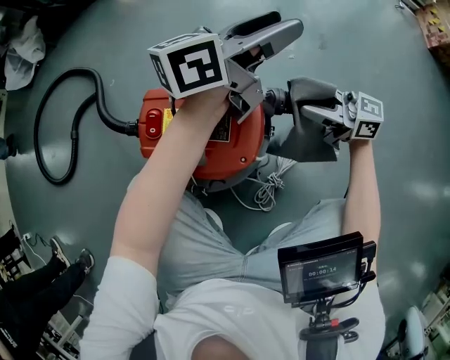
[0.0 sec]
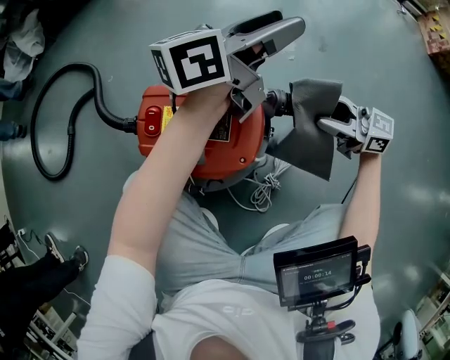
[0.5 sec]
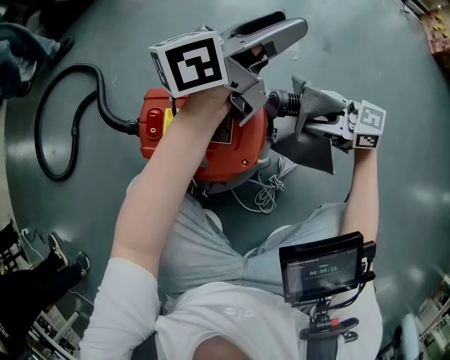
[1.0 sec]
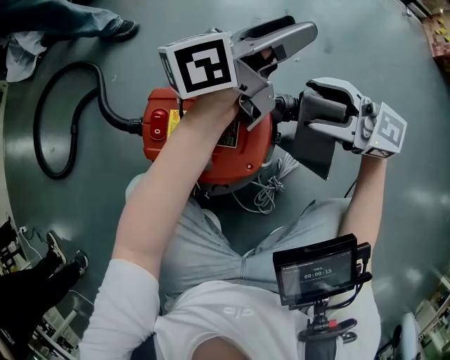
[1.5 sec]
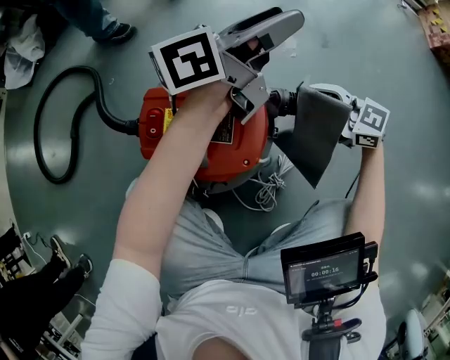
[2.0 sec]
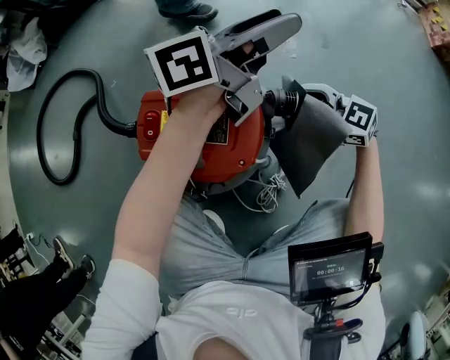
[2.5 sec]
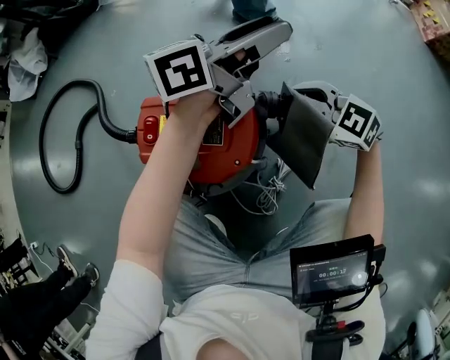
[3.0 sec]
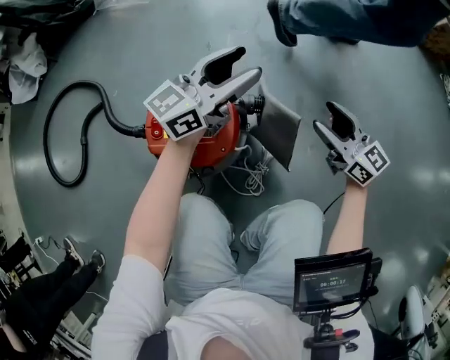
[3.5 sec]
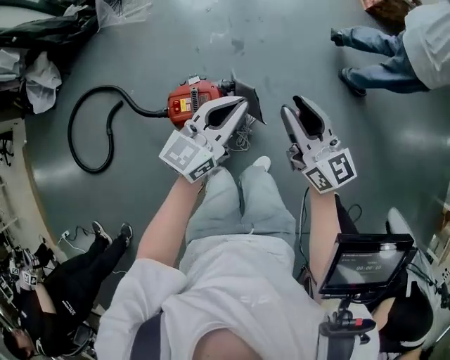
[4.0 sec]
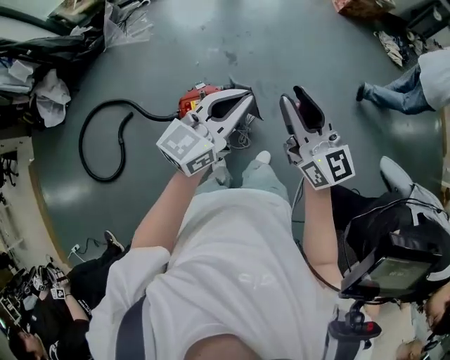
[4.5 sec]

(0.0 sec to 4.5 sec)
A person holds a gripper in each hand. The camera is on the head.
0.0 sec - 2.0 sec: The right gripper turns by roughly 20 degrees.
2.0 sec - 4.5 sec: The left gripper moves upward, roughly 25 cm, turns by roughly 40 degrees, and closes up, while the right gripper shifts some 50 cm upward, changes its angle by roughly 70 degrees, and closes up.

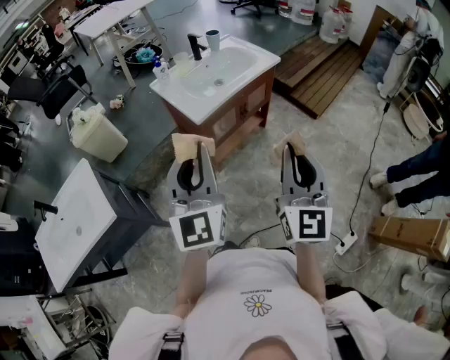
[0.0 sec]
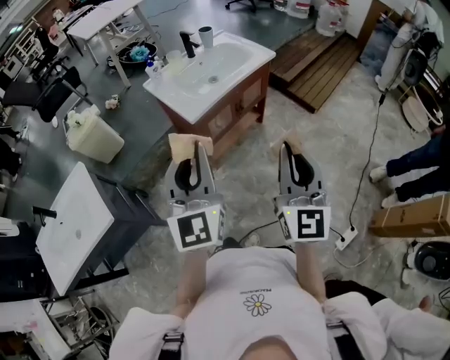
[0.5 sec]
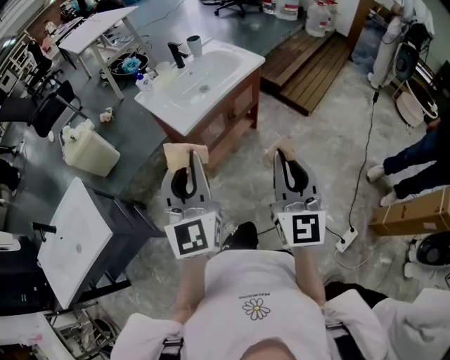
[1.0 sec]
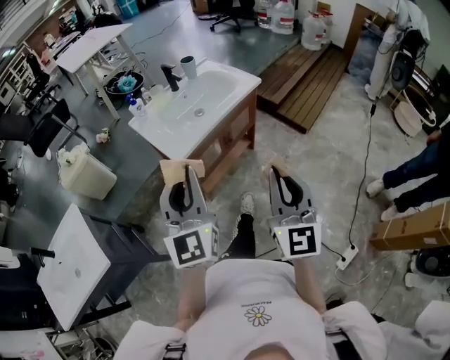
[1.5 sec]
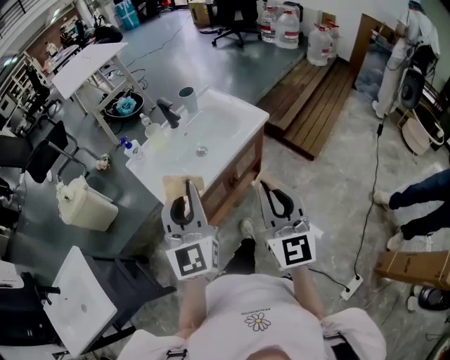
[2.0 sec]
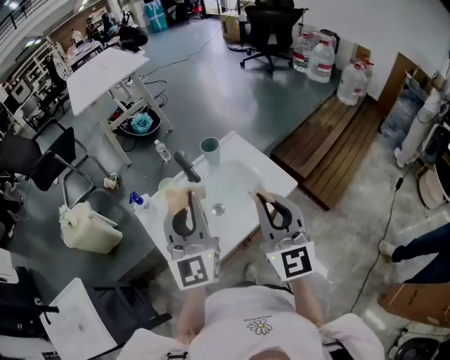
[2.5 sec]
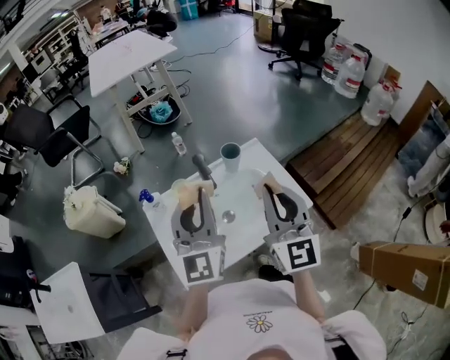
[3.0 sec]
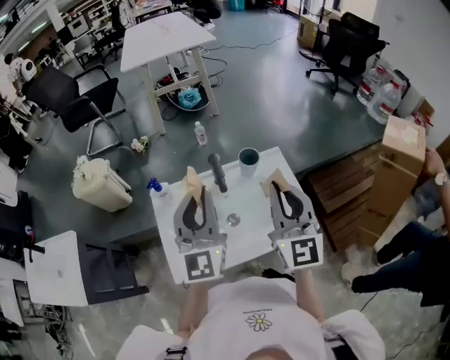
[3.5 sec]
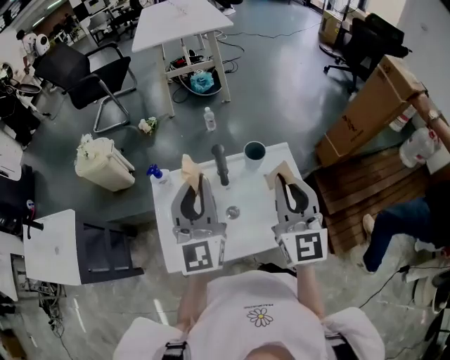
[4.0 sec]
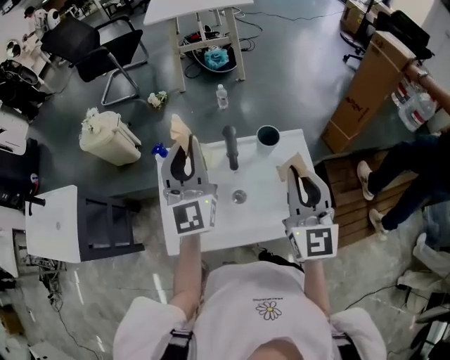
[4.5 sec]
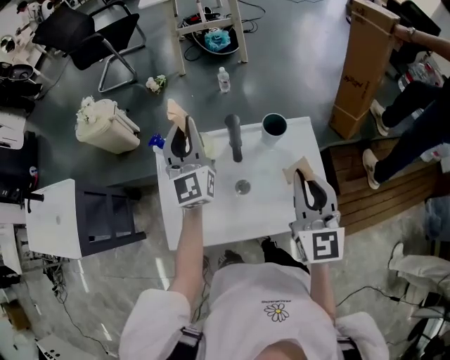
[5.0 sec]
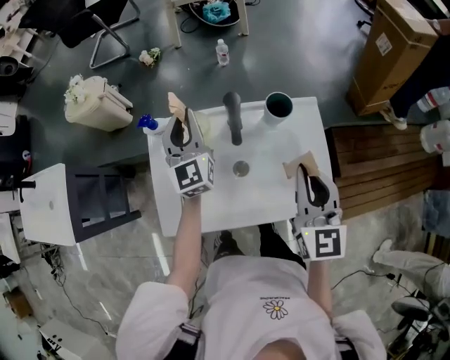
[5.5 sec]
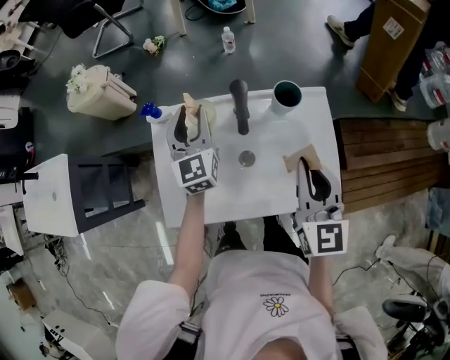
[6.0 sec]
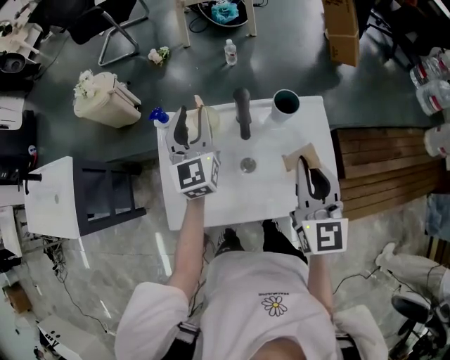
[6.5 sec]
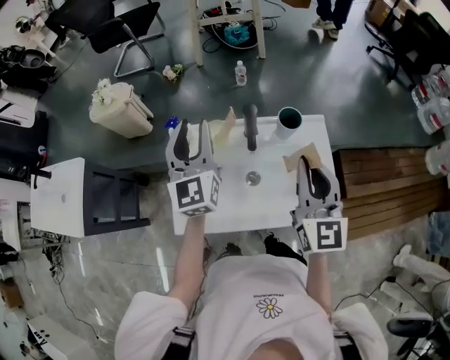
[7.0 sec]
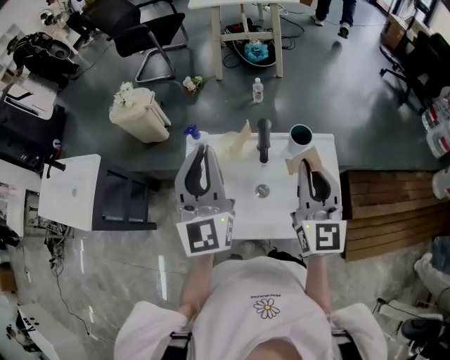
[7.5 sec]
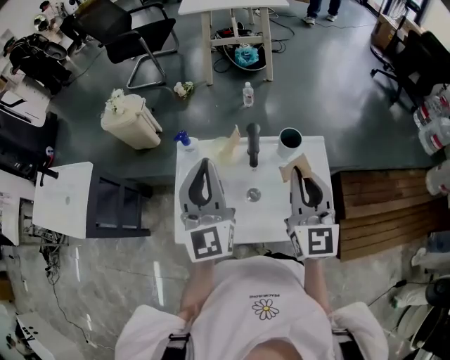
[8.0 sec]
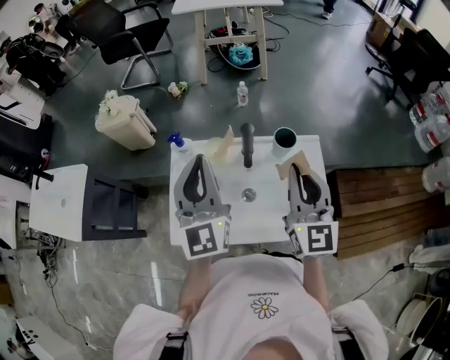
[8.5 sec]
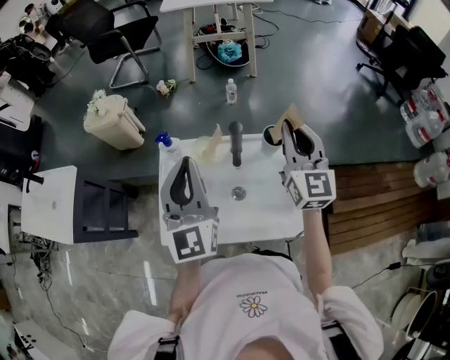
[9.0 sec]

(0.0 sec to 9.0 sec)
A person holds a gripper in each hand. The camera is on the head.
0.0 sec - 2.0 sec: The grippers both shift forward by about 30 cm.
2.0 sec - 4.5 sec: The left gripper ends up approximately 40 cm from where it was, and rotates about 40 degrees. The right gripper changes place by about 50 cm, and turns by about 30 degrees.
4.5 sec - 7.0 sec: The right gripper moves some 10 cm downward and comes back, while the left gripper moves some 20 cm downward and comes back, and opens up.
7.0 sec - 9.0 sec: The right gripper heads forward, covering about 10 cm. The left gripper is displaced backward by about 10 cm, and closes up.

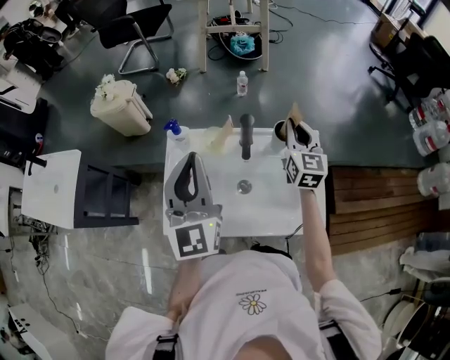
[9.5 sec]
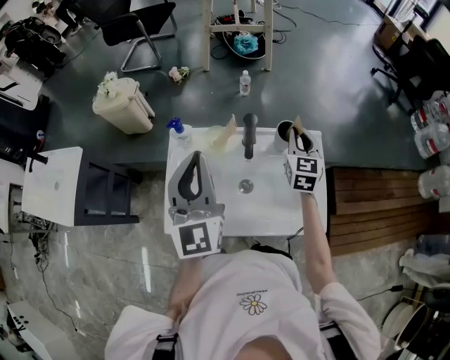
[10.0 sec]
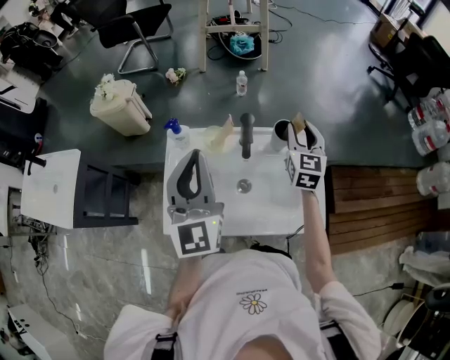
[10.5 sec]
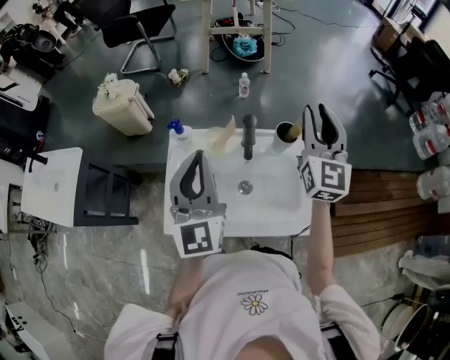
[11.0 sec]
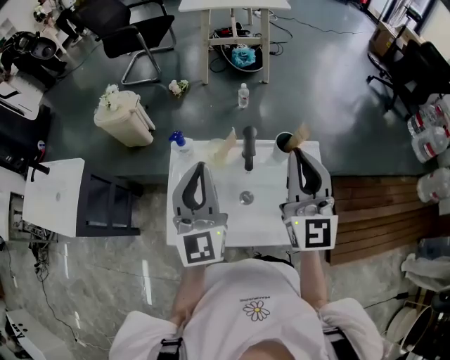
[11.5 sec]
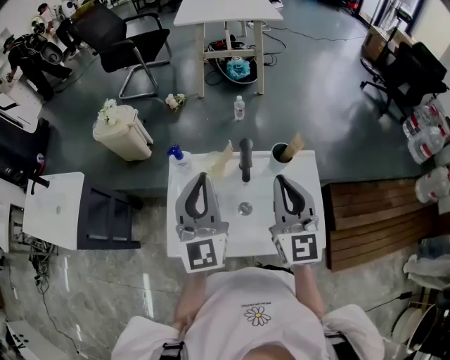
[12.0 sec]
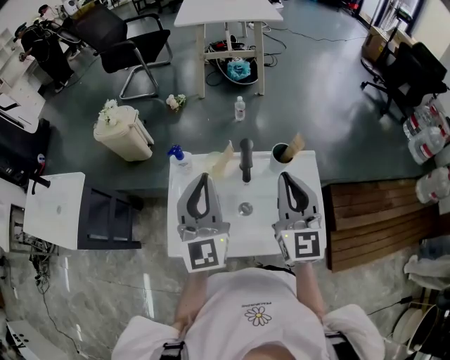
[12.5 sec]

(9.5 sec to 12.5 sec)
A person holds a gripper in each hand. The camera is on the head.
9.5 sec - 11.0 sec: The right gripper is displaced upward by approximately 15 cm, and opens up.
11.0 sec - 12.5 sec: The right gripper is displaced backward and to the left by about 10 cm, and closes its fingers.

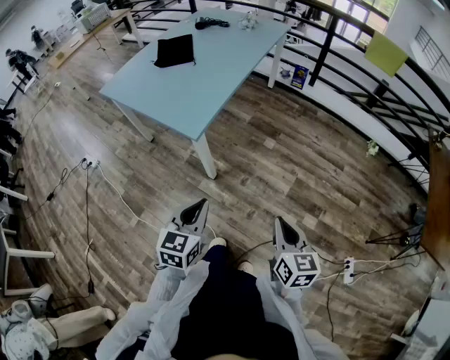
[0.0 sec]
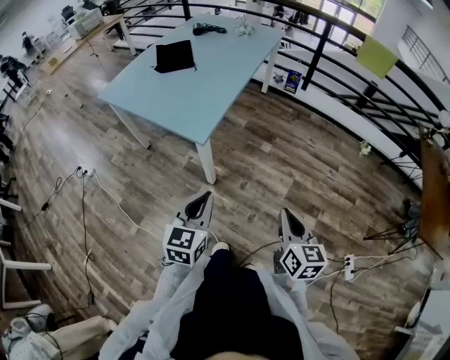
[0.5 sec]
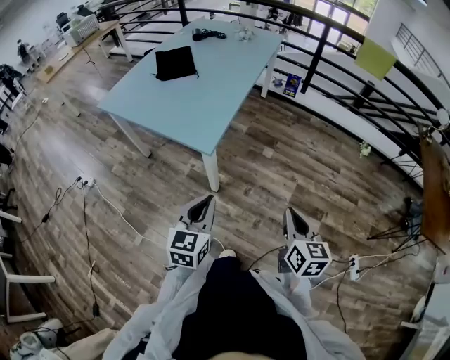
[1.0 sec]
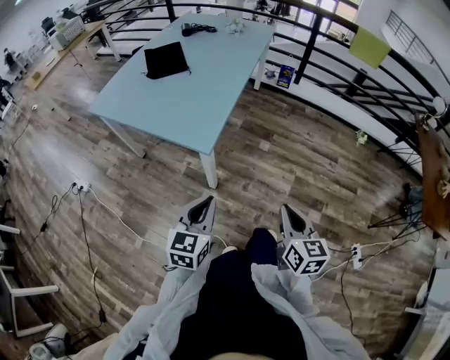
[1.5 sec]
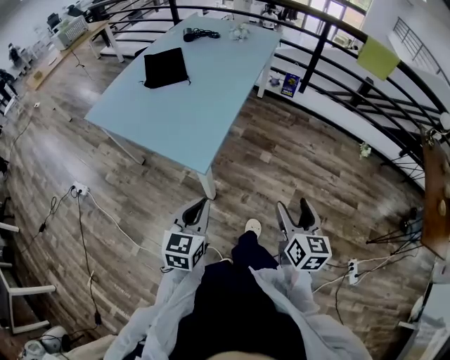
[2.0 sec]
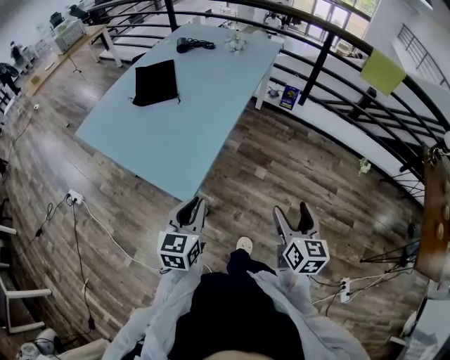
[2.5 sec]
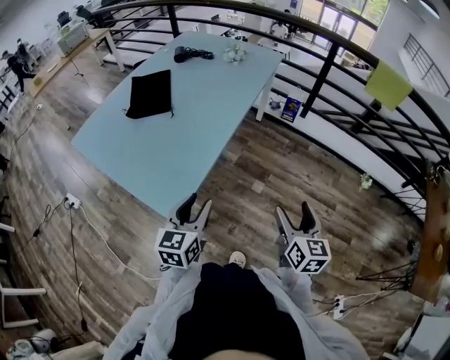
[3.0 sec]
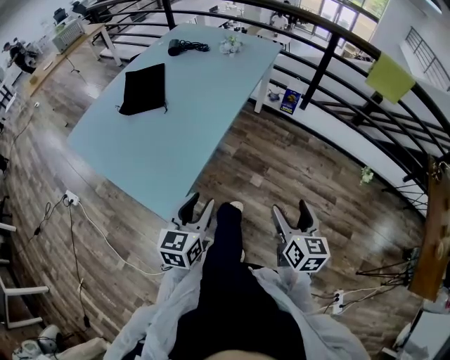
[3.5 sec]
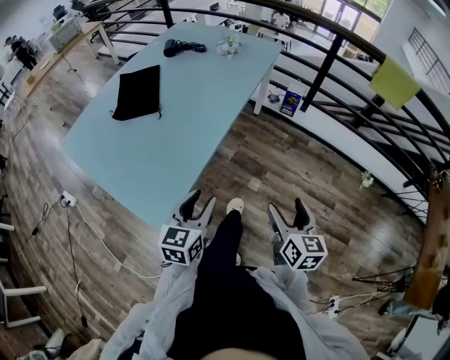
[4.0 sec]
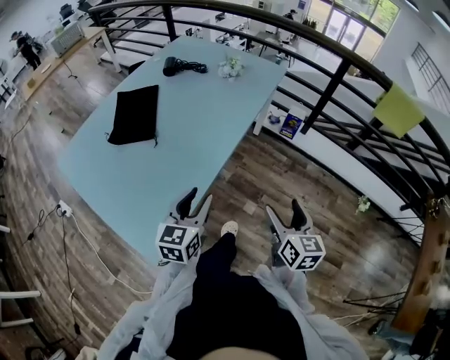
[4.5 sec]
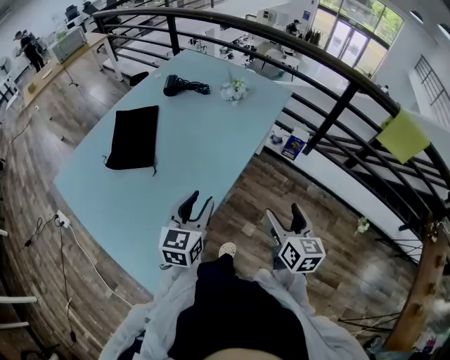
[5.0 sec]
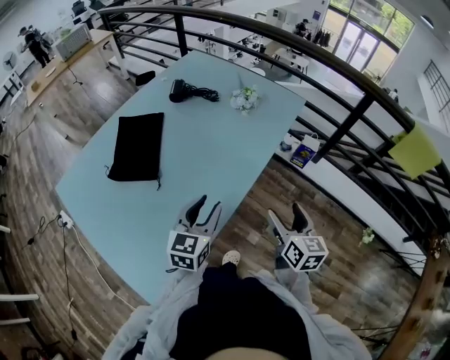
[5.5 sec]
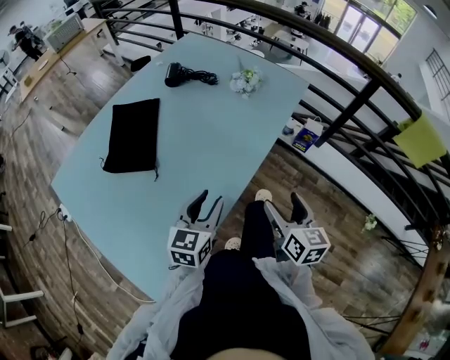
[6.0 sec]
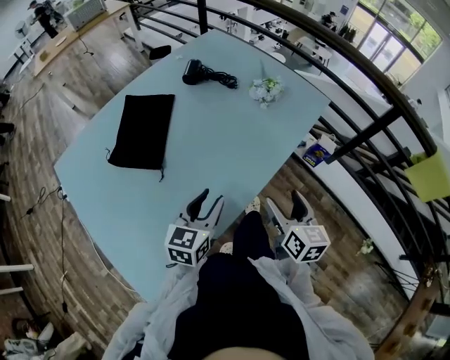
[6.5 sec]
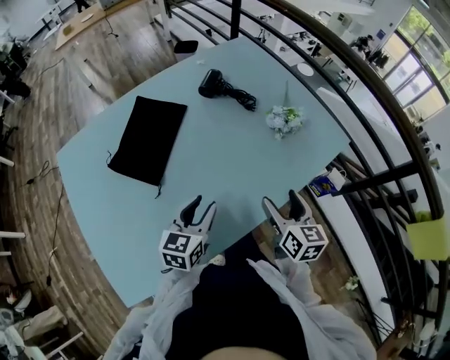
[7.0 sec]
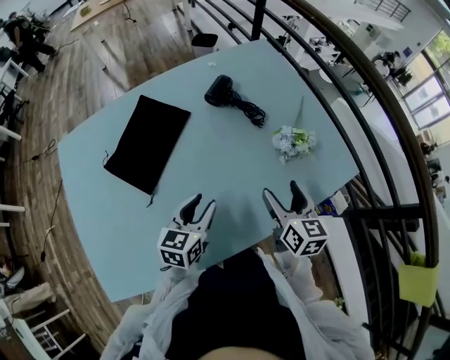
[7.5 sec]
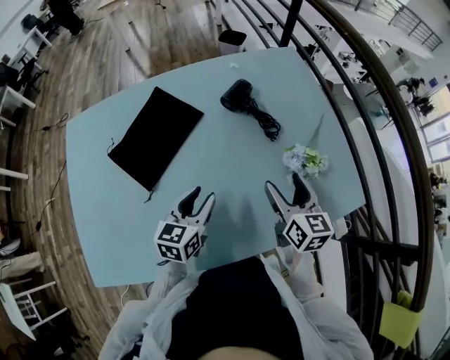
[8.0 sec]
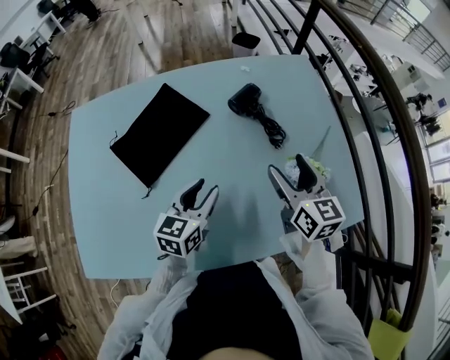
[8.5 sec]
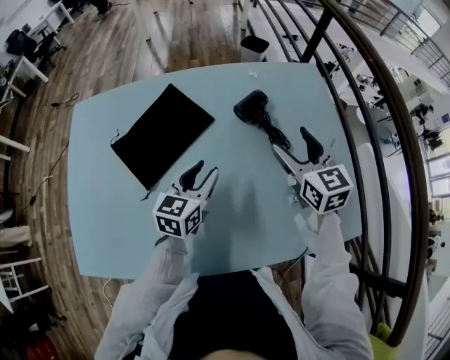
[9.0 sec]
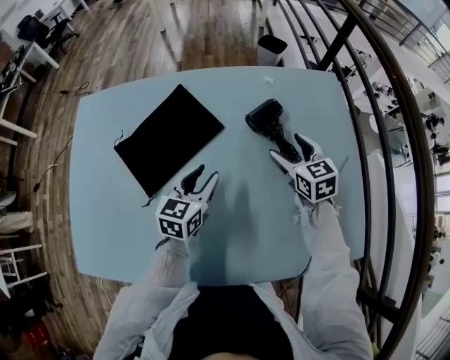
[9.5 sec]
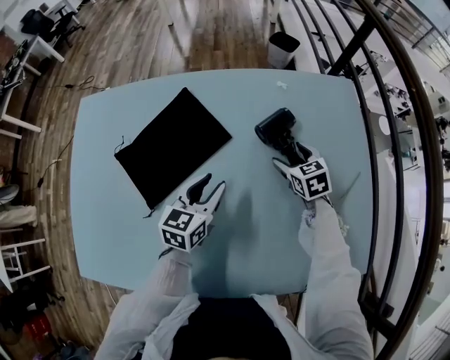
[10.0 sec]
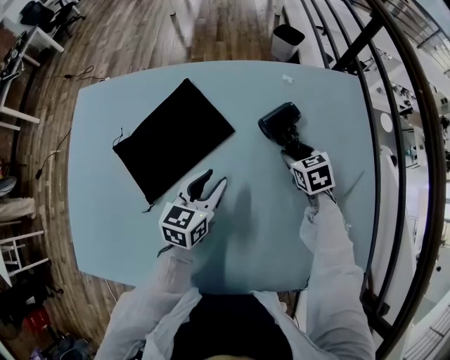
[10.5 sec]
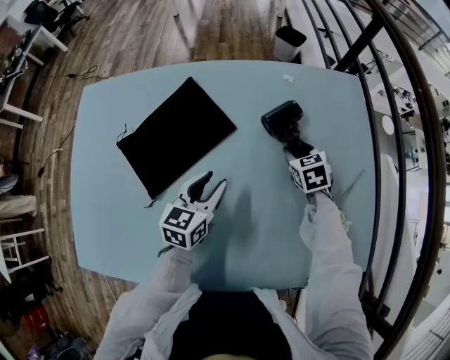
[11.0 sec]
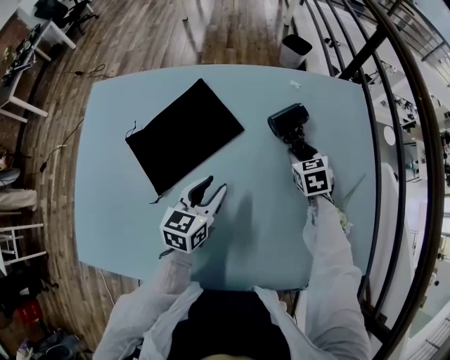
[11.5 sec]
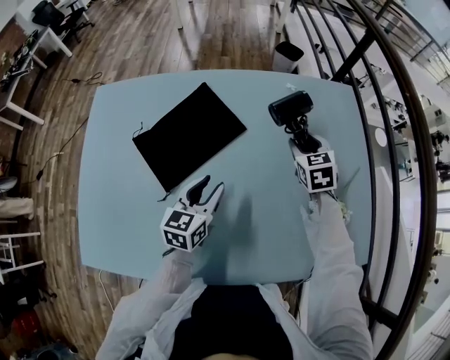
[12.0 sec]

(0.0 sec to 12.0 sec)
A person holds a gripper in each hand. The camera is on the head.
0.0 sec - 2.0 sec: The left gripper heads forward and to the left, covering approximately 15 cm, while the right gripper heads forward, covering approximately 15 cm, and opens up.
2.0 sec - 4.0 sec: The left gripper shifts roughly 30 cm forward and to the right, and opens its fingers; the right gripper shifts some 25 cm forward.
4.0 sec - 6.0 sec: Both grippers move forward, about 30 cm.
6.0 sec - 8.0 sec: The right gripper changes place by roughly 40 cm, and rotates about 40 degrees; the left gripper ends up some 25 cm from where it was, and swivels about 40 degrees.
8.0 sec - 10.0 sec: The left gripper goes roughly 15 cm forward, while the right gripper is displaced forward and downward by about 30 cm, and rotates approximately 40 degrees.
10.0 sec - 12.0 sec: The right gripper travels upward by about 10 cm, and closes up. Meanwhile the left gripper moves backward, approximately 5 cm.
